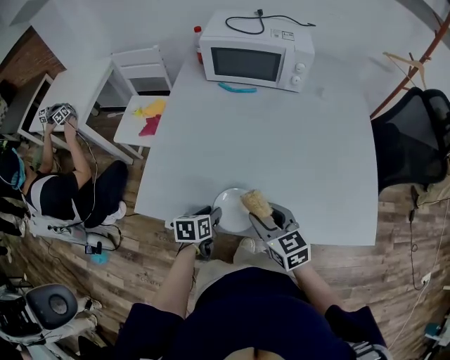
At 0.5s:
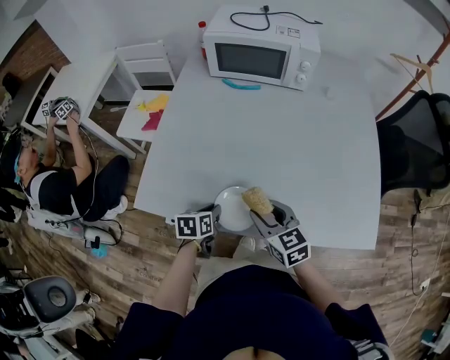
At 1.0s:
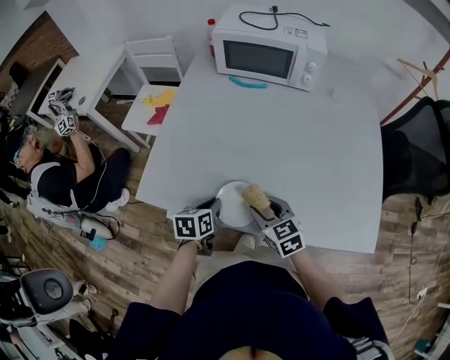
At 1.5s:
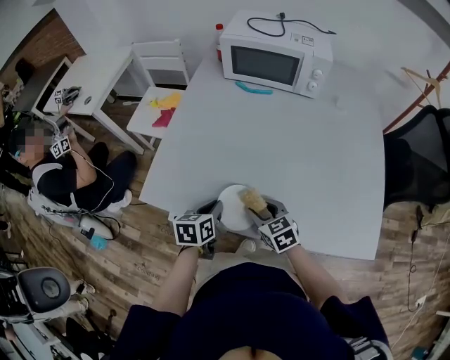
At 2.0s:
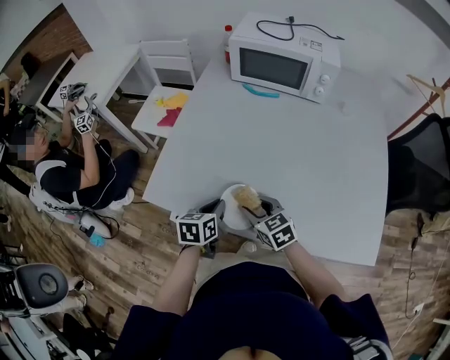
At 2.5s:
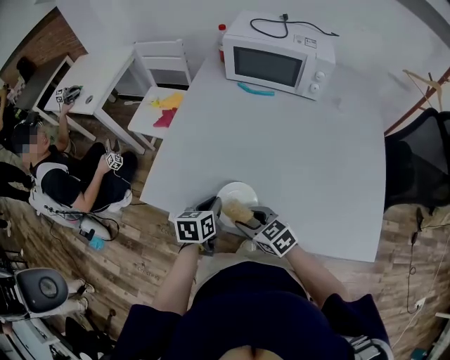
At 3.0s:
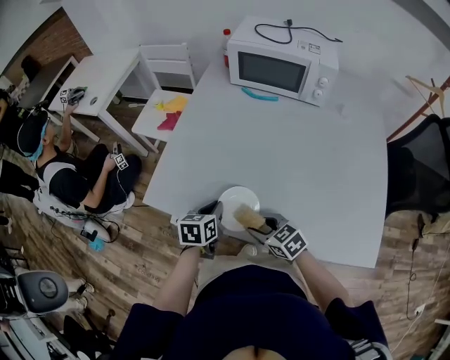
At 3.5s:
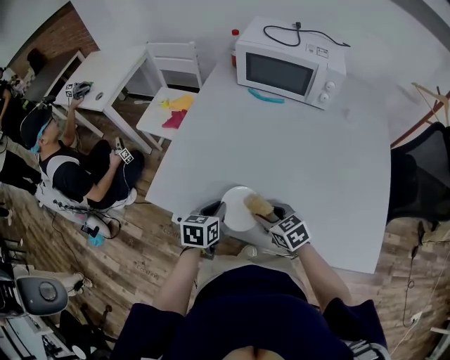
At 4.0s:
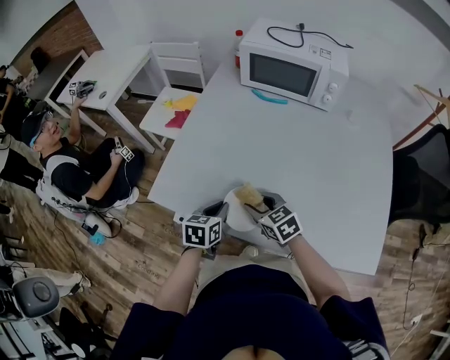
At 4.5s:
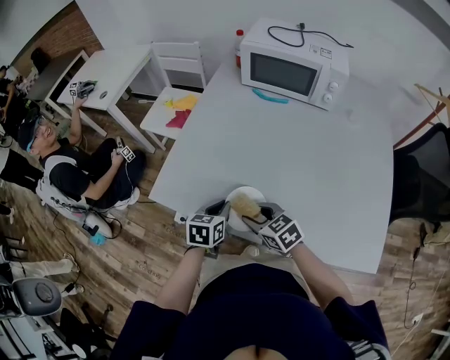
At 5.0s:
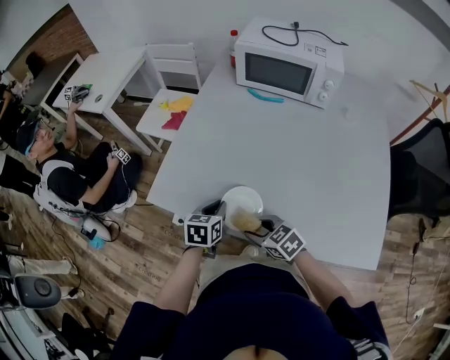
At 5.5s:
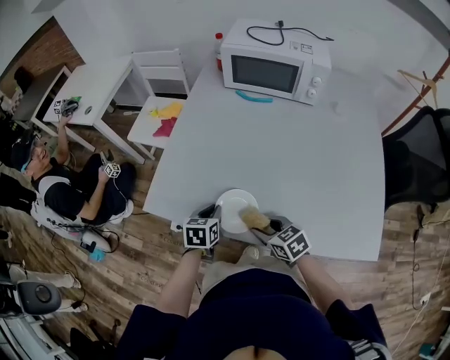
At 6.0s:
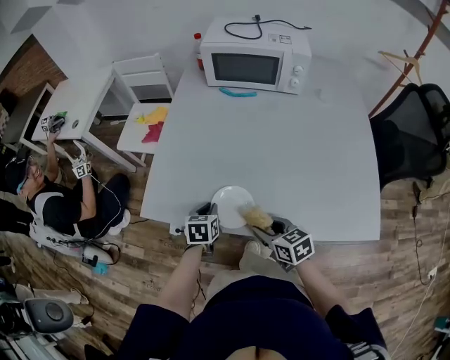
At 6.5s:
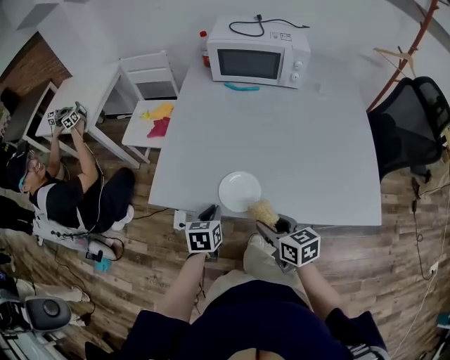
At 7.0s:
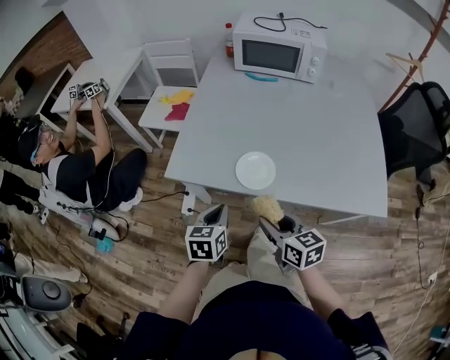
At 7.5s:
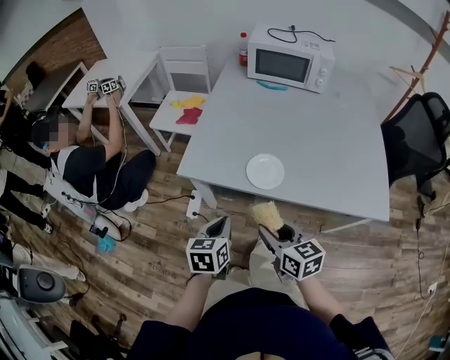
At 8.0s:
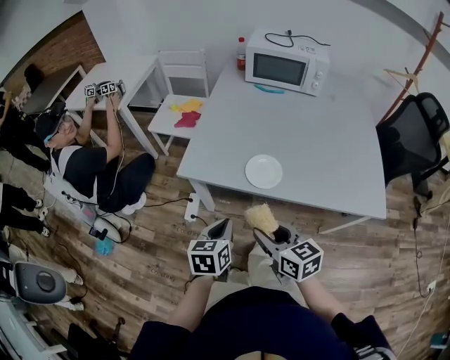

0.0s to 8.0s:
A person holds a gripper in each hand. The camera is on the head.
0.0s to 2.0s: The left gripper shifts about 5 cm upward, and closes its fingers; the right gripper is displaced downward by about 5 cm.
2.0s to 4.0s: The right gripper goes backward and returns, some 5 cm each way.
4.0s to 6.0s: The right gripper is displaced backward by about 10 cm, and turns by approximately 20 degrees. Meanwhile the left gripper changes place by about 5 cm.
6.0s to 8.0s: The left gripper heads backward, upward and to the left, covering approximately 25 cm; the right gripper goes about 25 cm backward, to the left and upward.

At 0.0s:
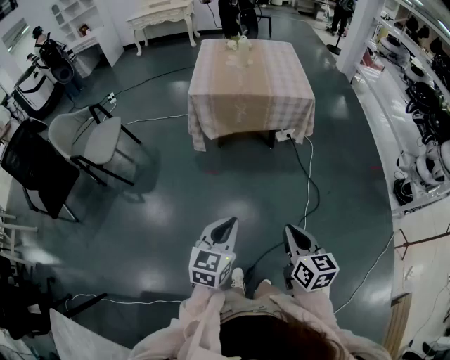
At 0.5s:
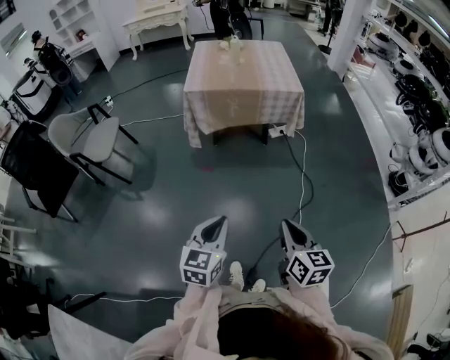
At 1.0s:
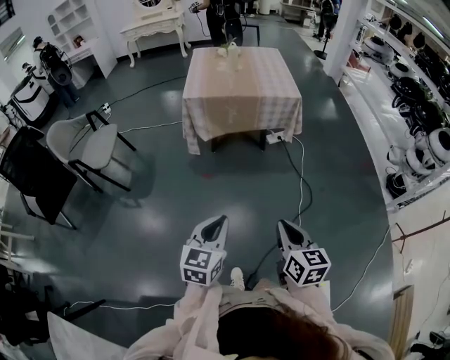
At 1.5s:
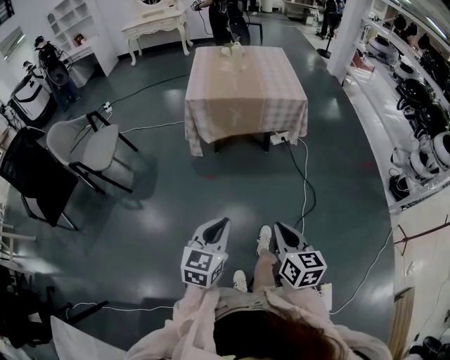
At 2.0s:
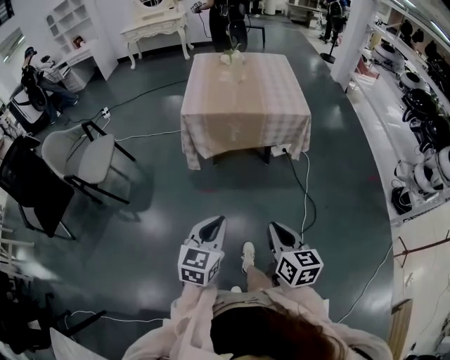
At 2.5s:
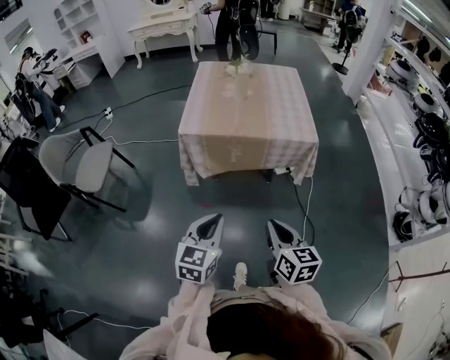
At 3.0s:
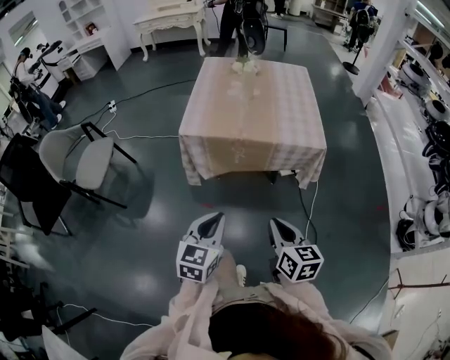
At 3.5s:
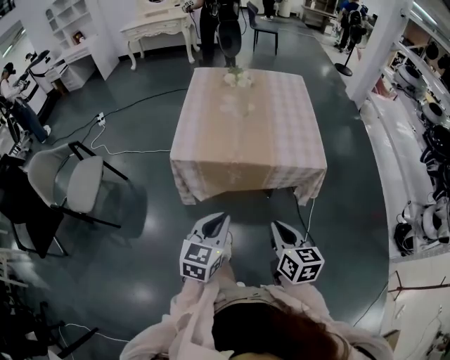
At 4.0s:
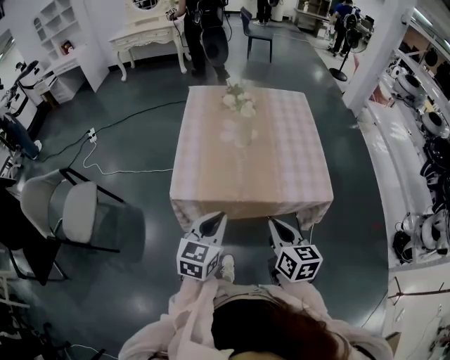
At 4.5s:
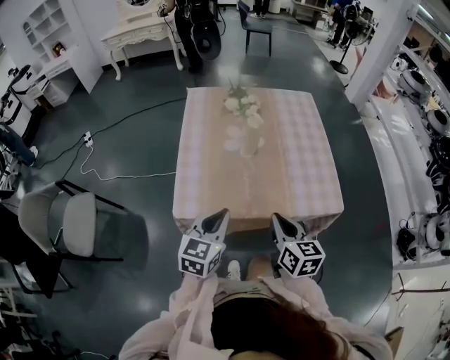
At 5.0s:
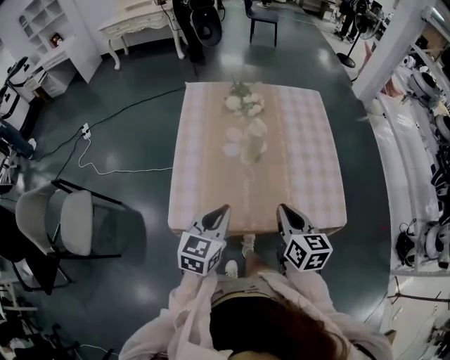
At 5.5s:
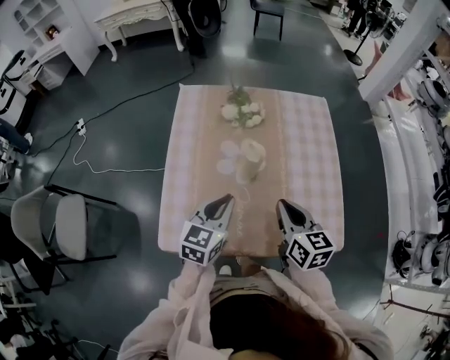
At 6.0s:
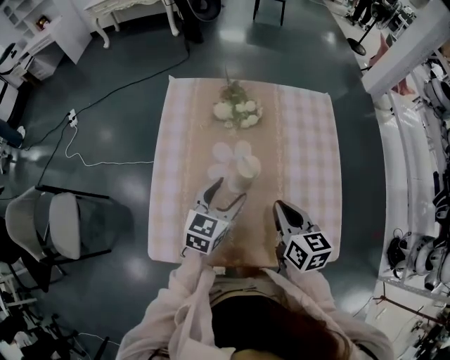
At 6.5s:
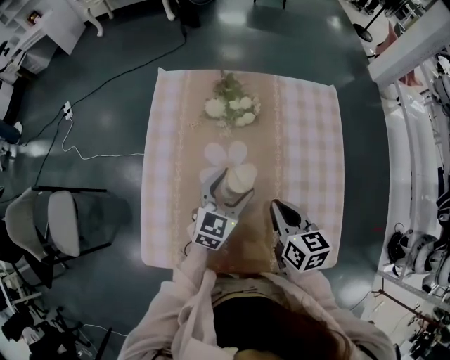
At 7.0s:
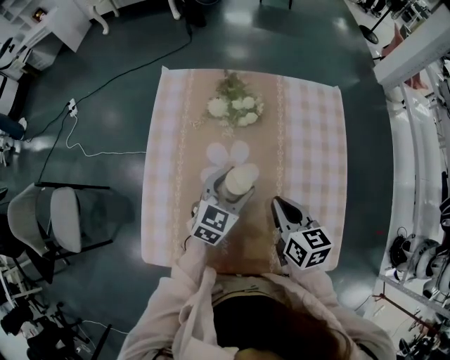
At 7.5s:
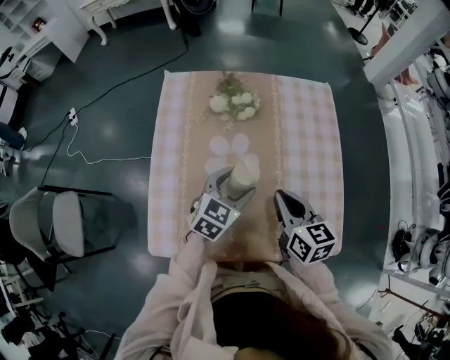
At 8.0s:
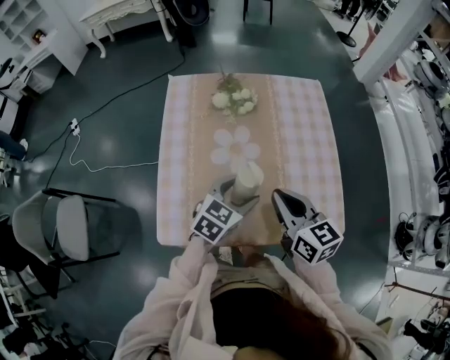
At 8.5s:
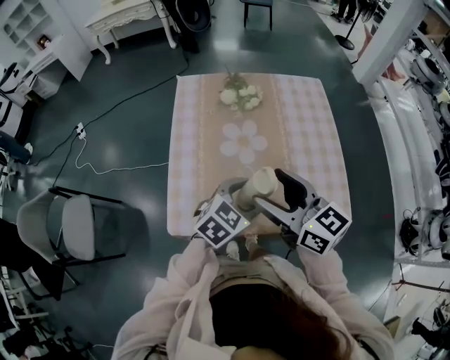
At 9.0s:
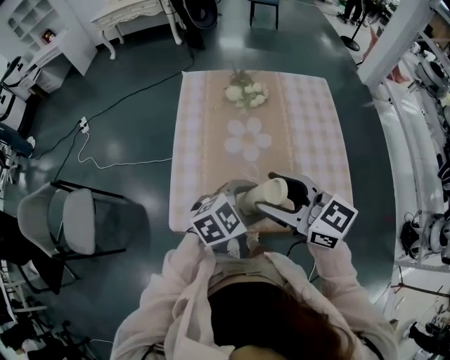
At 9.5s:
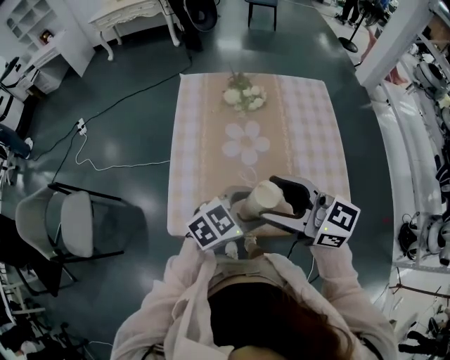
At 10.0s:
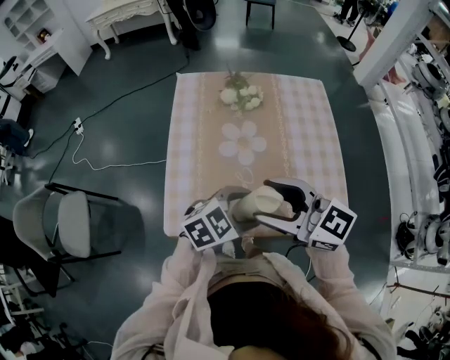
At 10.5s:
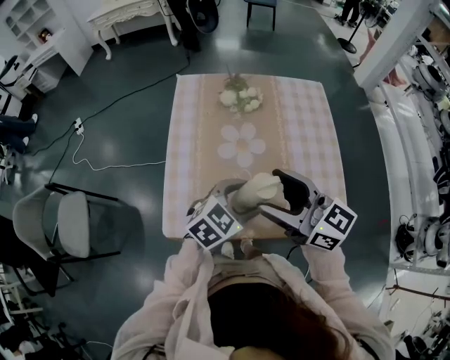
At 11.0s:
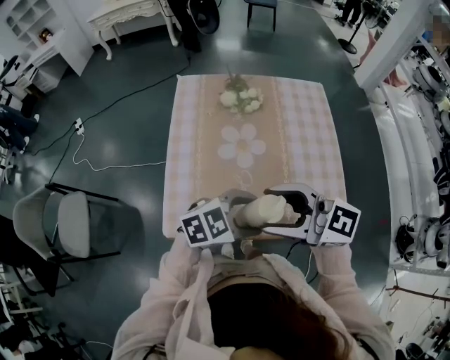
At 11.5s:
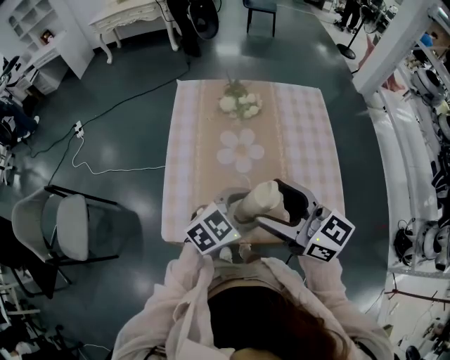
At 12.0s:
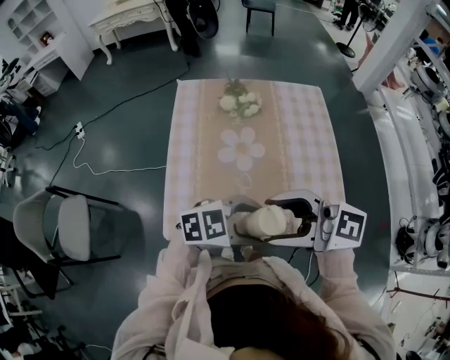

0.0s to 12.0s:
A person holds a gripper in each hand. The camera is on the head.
0.0s to 2.0s: The two grippers go about 10 cm forward.
2.0s to 4.0s: Both grippers are carried forward, roughly 50 cm.
4.0s to 6.0s: Both grippers travel together forward, about 35 cm. The left gripper opens.
6.0s to 8.0s: The left gripper moves backward, about 5 cm, and rotates approximately 20 degrees, while the right gripper is displaced backward and upward by some 10 cm.
8.0s to 10.0s: The left gripper ends up about 10 cm from where it was, and changes its angle by some 30 degrees; the right gripper moves about 15 cm, turns by approximately 40 degrees, and opens up.
10.0s to 12.0s: The right gripper moves about 5 cm. The left gripper ends up roughly 5 cm from where it was, and changes its angle by approximately 20 degrees.

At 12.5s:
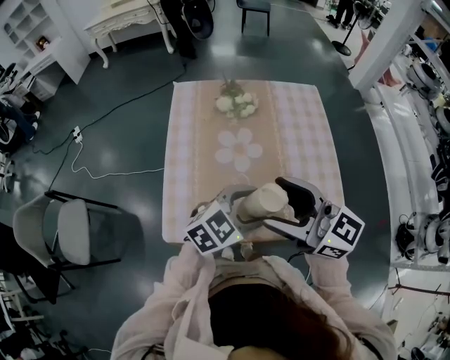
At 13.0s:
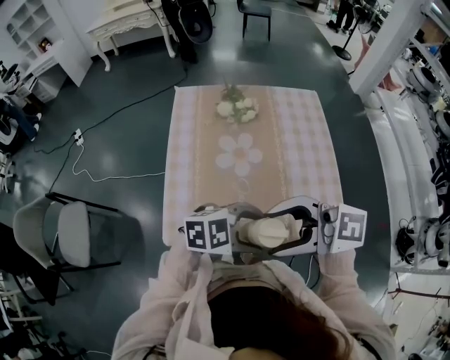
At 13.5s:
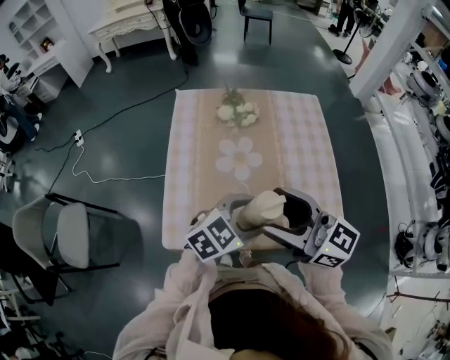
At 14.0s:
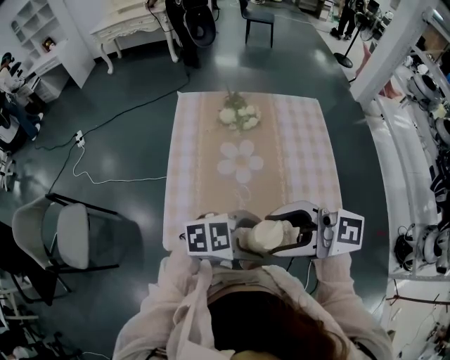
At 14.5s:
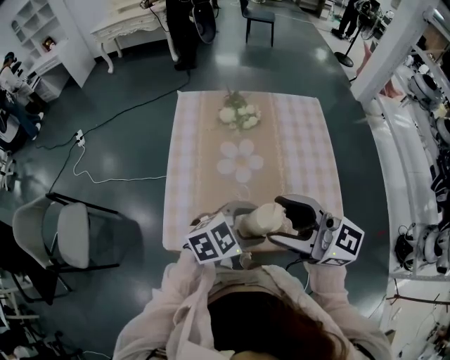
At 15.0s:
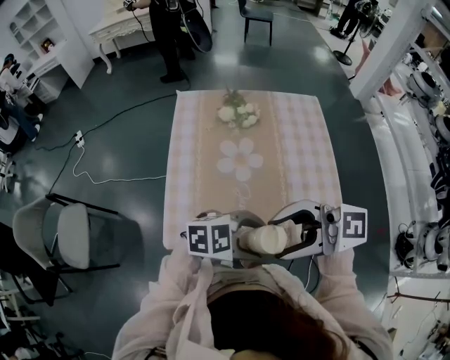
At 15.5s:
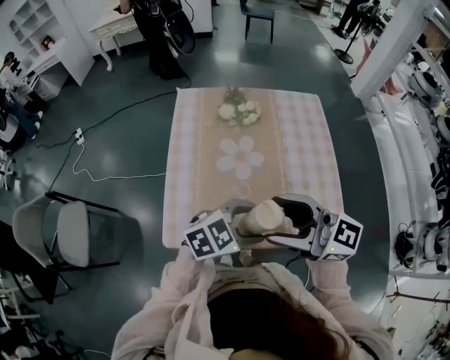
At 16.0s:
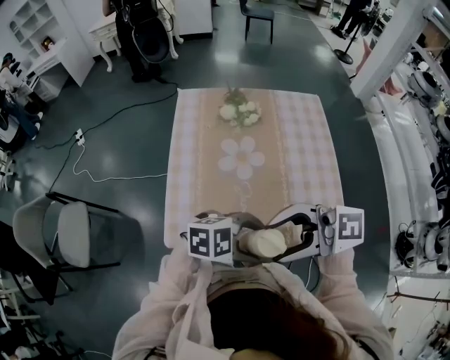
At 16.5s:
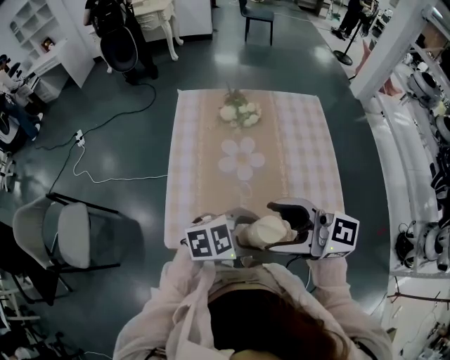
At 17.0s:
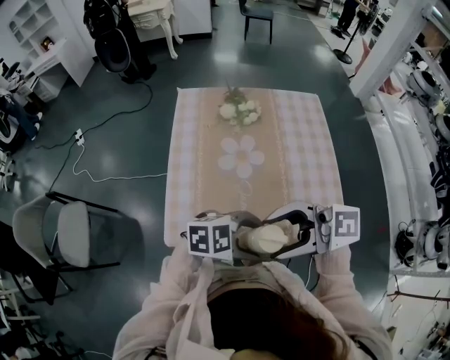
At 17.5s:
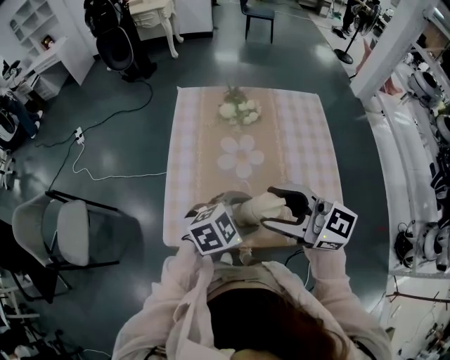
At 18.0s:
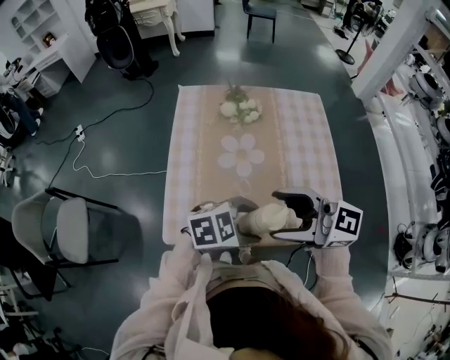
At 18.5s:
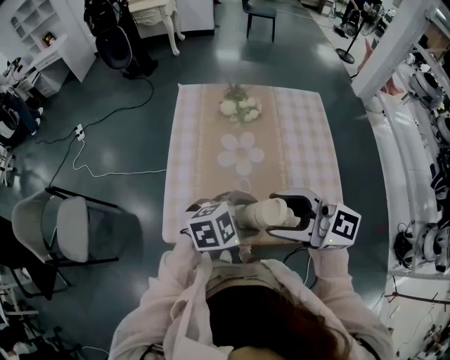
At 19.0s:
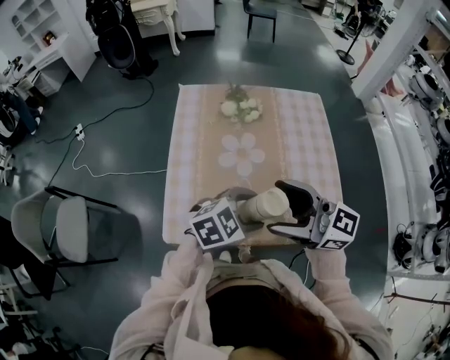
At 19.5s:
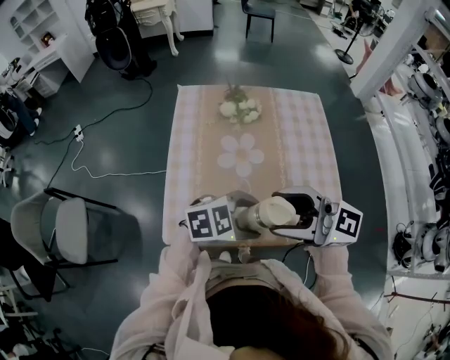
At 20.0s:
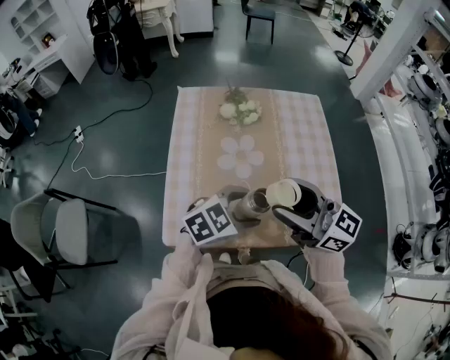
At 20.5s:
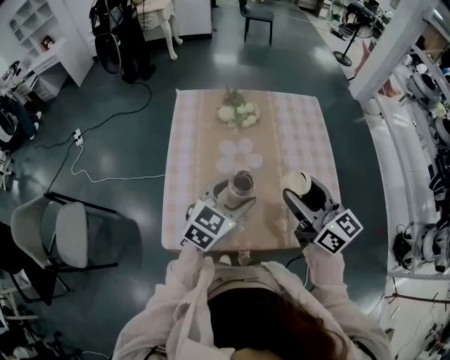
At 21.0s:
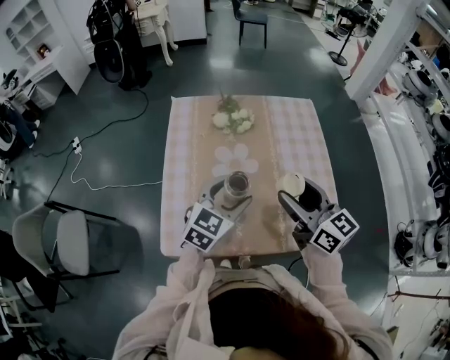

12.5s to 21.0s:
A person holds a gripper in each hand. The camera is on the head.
16.5s to 19.0s: The left gripper ends up approximately 5 cm from where it was.
19.0s to 21.0s: The right gripper changes place by roughly 10 cm, and rotates approximately 30 degrees, while the left gripper changes place by about 10 cm, and rotates roughly 30 degrees.
